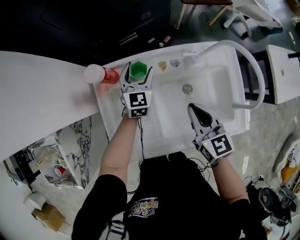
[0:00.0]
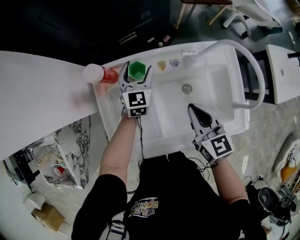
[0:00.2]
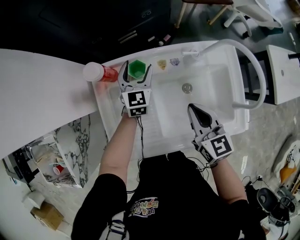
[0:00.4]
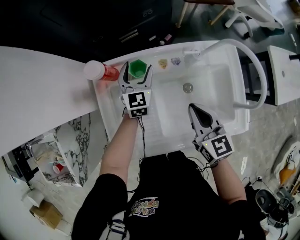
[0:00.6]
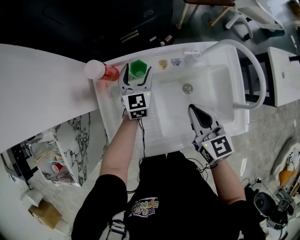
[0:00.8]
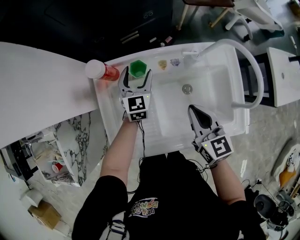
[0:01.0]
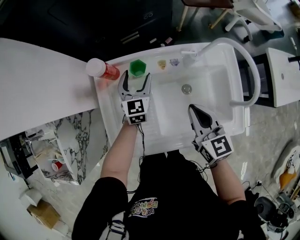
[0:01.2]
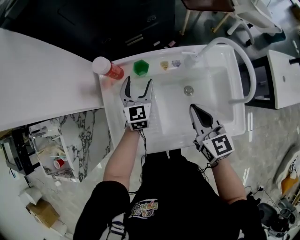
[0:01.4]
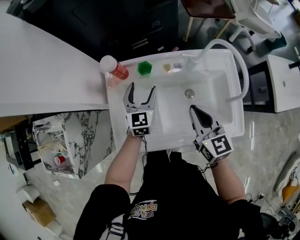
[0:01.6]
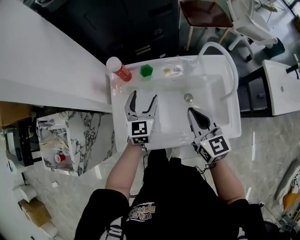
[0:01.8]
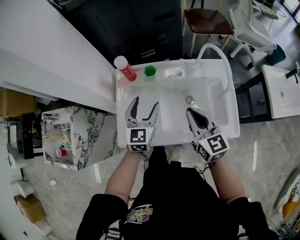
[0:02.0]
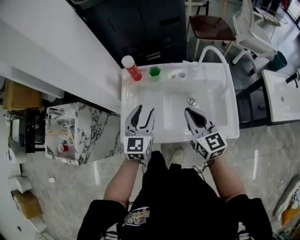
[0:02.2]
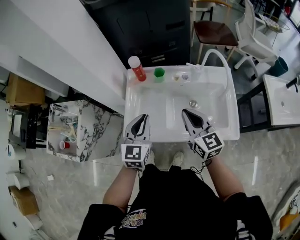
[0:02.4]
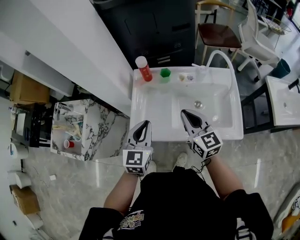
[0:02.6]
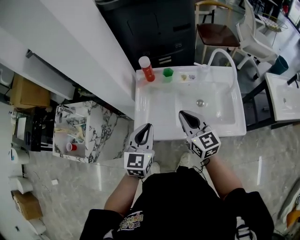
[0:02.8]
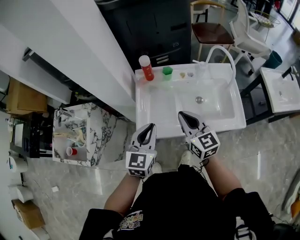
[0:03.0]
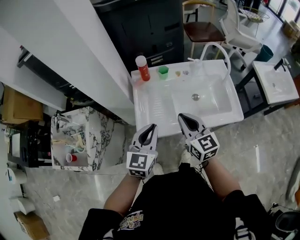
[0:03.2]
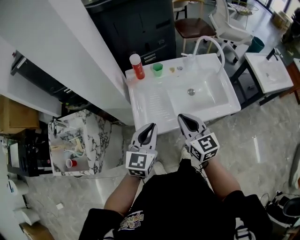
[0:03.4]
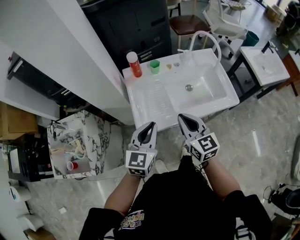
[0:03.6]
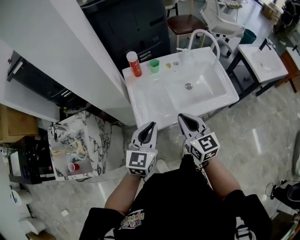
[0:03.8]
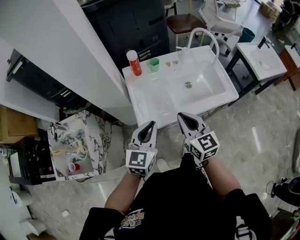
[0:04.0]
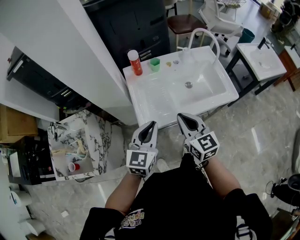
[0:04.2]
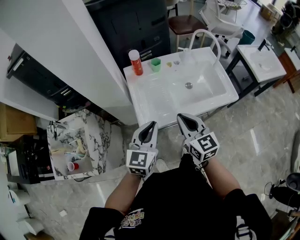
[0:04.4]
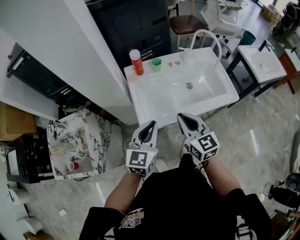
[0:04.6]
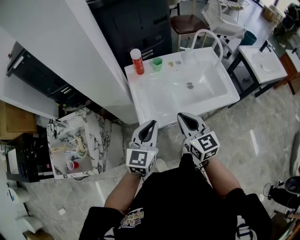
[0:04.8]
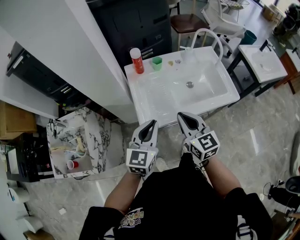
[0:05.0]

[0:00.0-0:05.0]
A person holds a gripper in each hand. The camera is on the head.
0.0 to 1.6 s: The left gripper goes approximately 10 cm backward.
1.6 to 3.4 s: The left gripper shifts some 35 cm backward, upward and to the left, and closes. The right gripper moves backward and to the left, roughly 20 cm.
3.4 to 5.0 s: The right gripper shifts by some 5 cm.

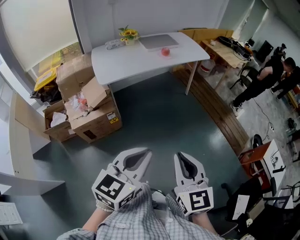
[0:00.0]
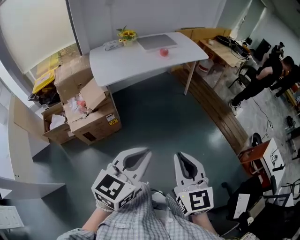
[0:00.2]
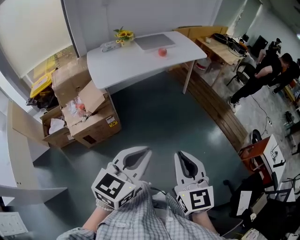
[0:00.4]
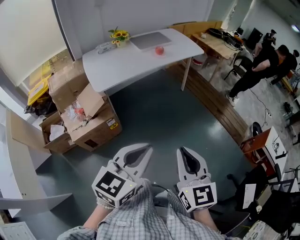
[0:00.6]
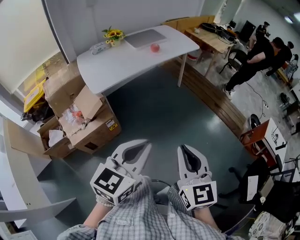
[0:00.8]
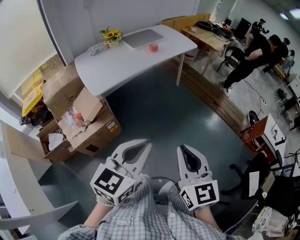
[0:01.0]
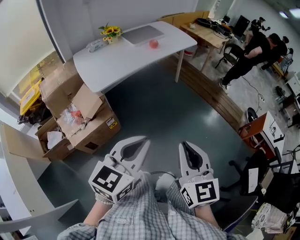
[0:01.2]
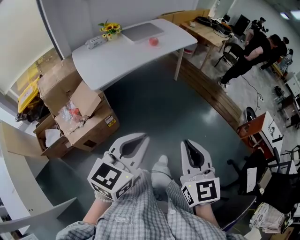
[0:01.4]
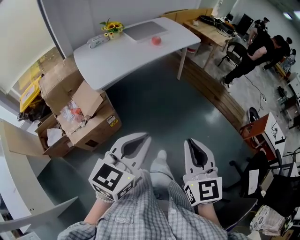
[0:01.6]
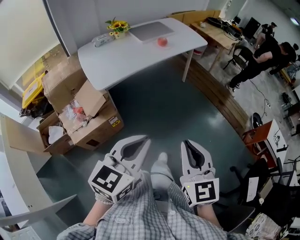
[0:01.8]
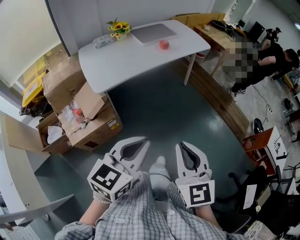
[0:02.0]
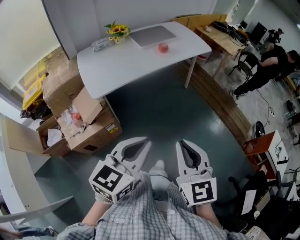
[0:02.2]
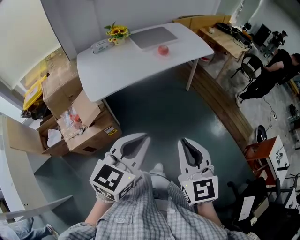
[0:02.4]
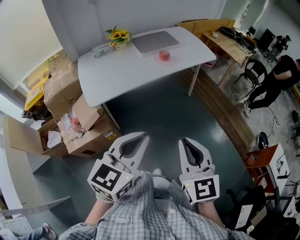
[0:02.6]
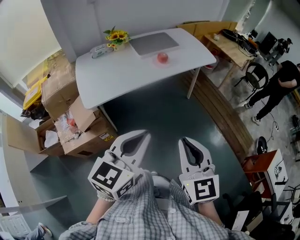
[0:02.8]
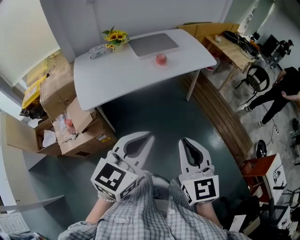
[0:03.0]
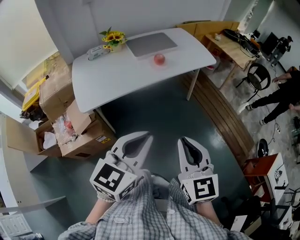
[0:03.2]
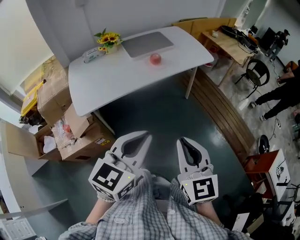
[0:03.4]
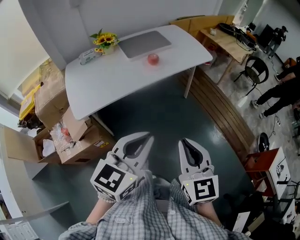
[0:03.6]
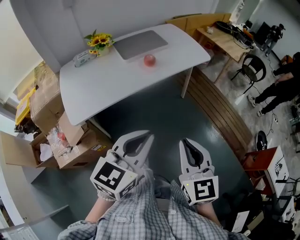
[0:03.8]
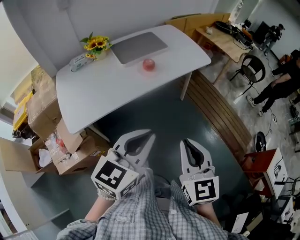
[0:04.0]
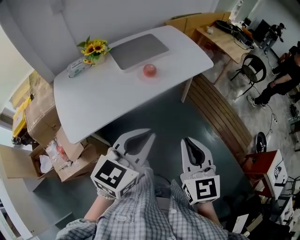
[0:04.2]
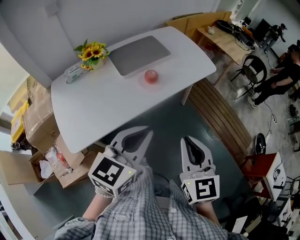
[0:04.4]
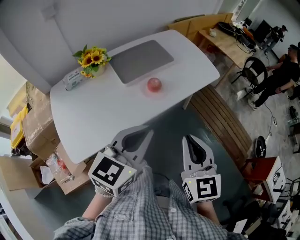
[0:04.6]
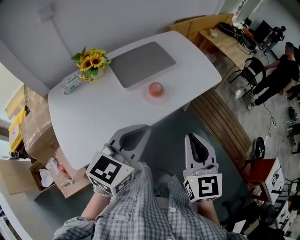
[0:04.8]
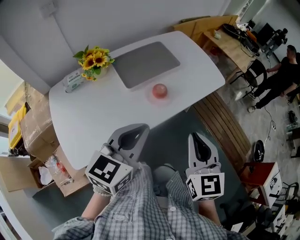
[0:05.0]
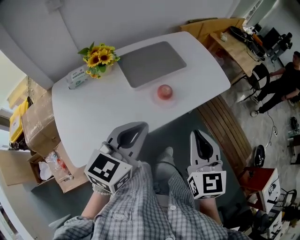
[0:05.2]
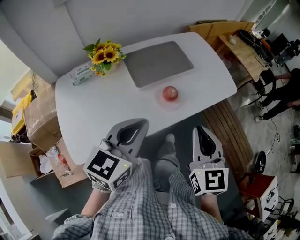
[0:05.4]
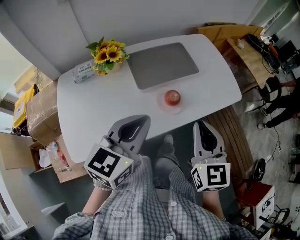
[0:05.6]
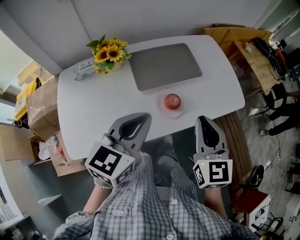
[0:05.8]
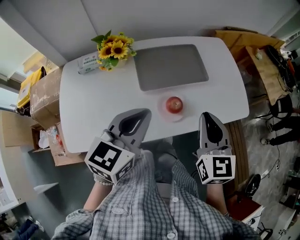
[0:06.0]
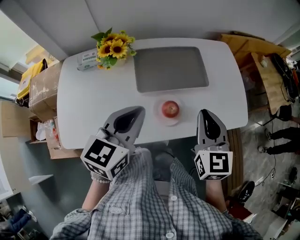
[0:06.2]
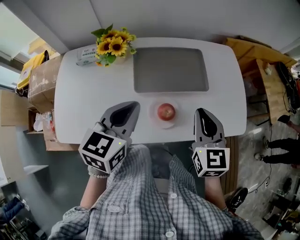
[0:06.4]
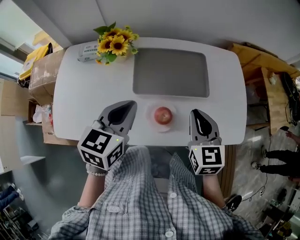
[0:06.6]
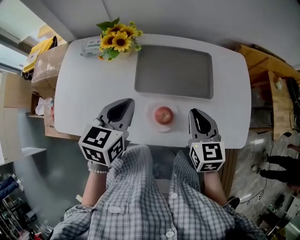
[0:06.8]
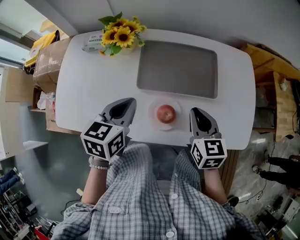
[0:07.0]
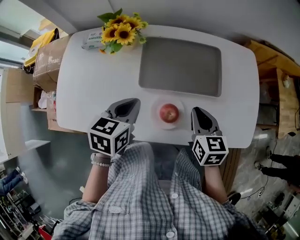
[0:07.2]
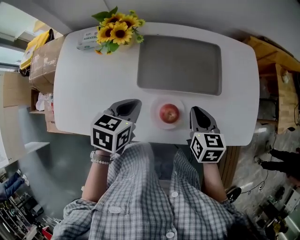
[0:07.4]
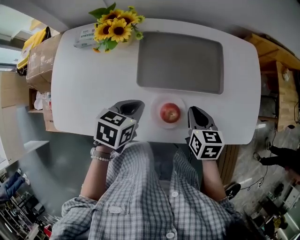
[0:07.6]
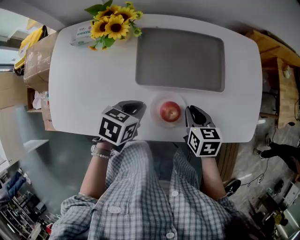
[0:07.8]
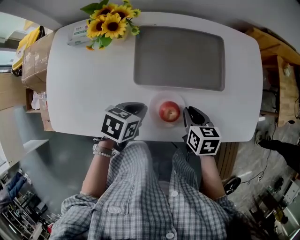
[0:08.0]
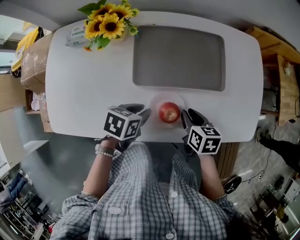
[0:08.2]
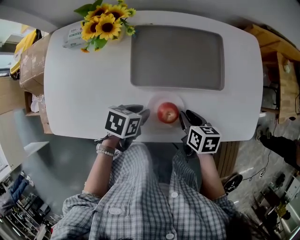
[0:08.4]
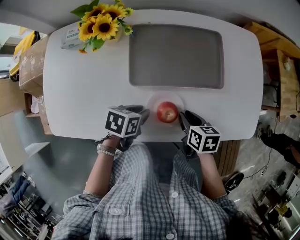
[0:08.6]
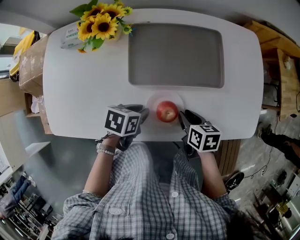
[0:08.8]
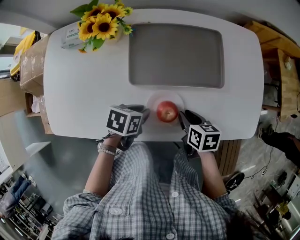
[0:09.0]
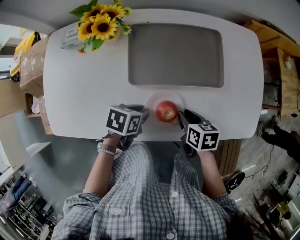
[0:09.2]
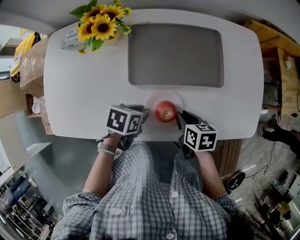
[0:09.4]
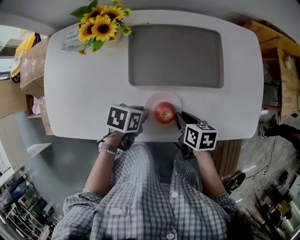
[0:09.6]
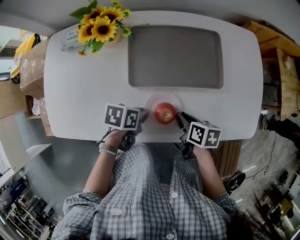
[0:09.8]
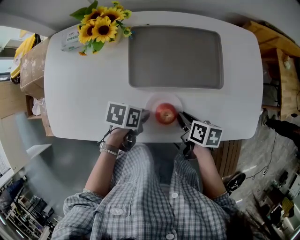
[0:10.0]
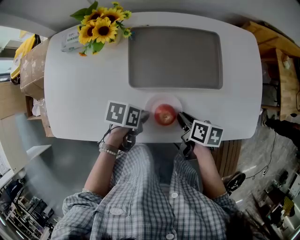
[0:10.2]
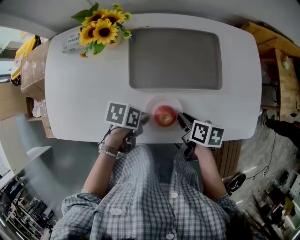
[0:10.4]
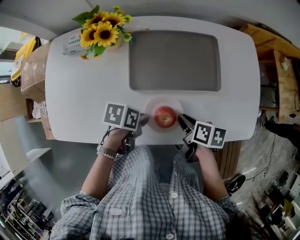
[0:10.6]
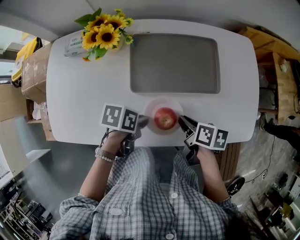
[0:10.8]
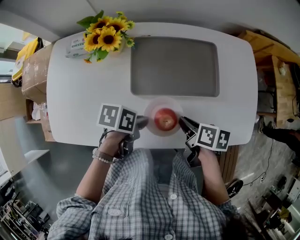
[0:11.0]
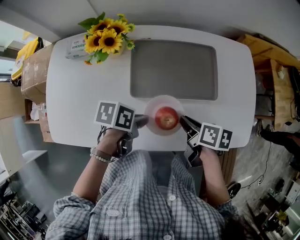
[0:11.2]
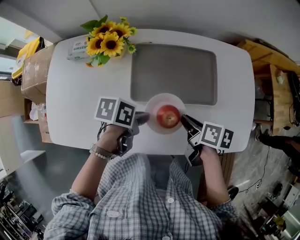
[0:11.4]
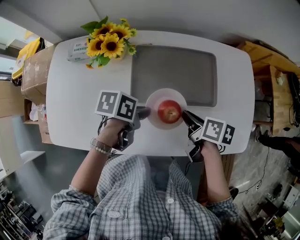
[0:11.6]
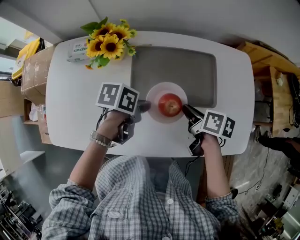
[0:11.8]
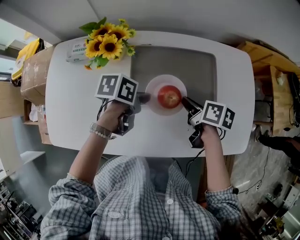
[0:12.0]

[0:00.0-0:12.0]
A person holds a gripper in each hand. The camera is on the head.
0.0 to 1.6 s: The right gripper is displaced to the left by roughly 10 cm; the left gripper moves to the left and forward, approximately 15 cm.
1.6 to 3.0 s: The left gripper is displaced forward and to the right by approximately 25 cm, while the right gripper moves forward, roughly 25 cm.
3.0 to 4.4 s: Both grippers move forward, approximately 25 cm.
4.4 to 6.0 s: The right gripper is displaced forward by some 30 cm. Meanwhile the left gripper moves forward and to the left, roughly 25 cm, and turns by some 20 degrees.
6.0 to 7.6 s: Both grippers move downward and forward, approximately 20 cm. The right gripper angles its fingers downward, by approximately 30 degrees, while the left gripper tips its fingers downward by approximately 30 degrees.
7.6 to 9.0 s: The two grippers go some 10 cm downward. The right gripper changes its angle by roughly 20 degrees; the left gripper changes its angle by approximately 20 degrees, and opens up.
9.0 to 10.4 s: The grippers make only small movements.
10.4 to 12.0 s: The left gripper changes place by about 15 cm. Meanwhile the right gripper moves roughly 15 cm.

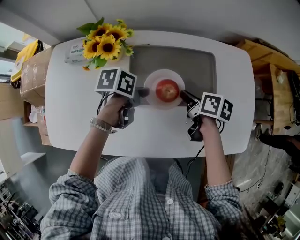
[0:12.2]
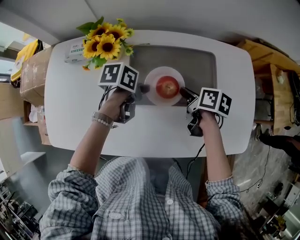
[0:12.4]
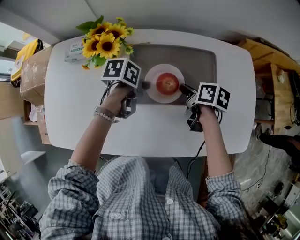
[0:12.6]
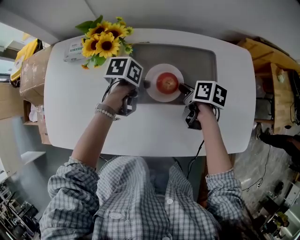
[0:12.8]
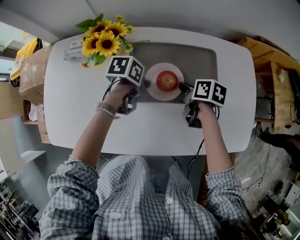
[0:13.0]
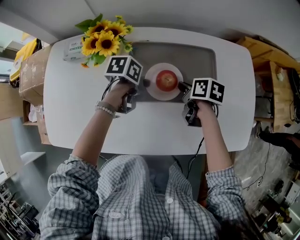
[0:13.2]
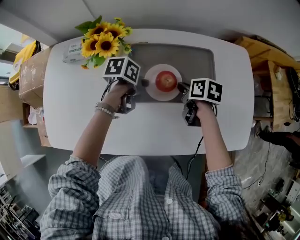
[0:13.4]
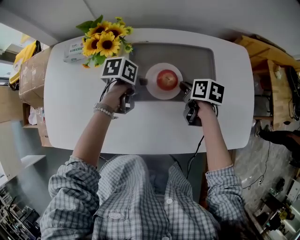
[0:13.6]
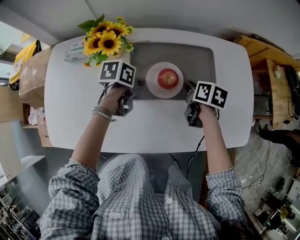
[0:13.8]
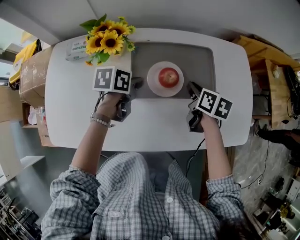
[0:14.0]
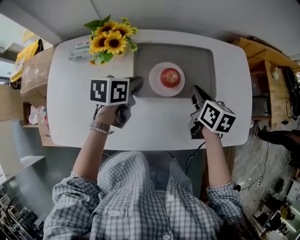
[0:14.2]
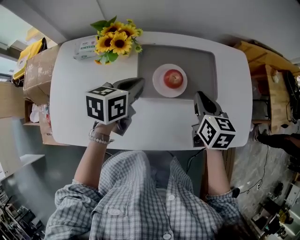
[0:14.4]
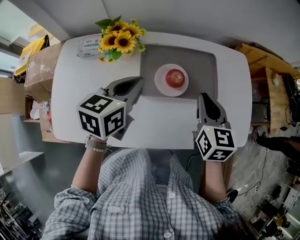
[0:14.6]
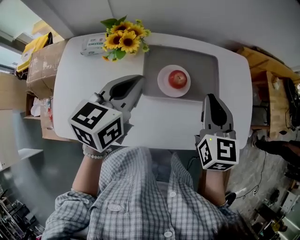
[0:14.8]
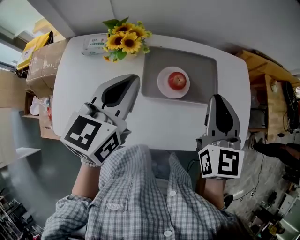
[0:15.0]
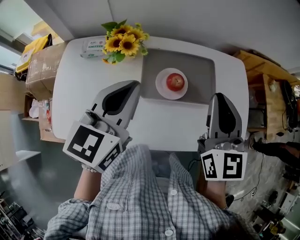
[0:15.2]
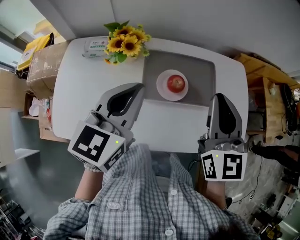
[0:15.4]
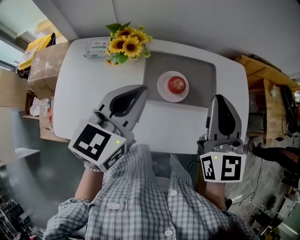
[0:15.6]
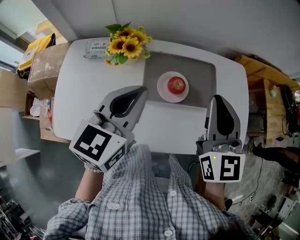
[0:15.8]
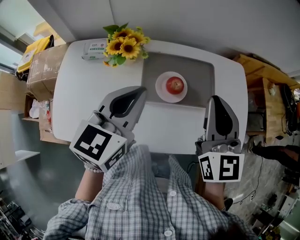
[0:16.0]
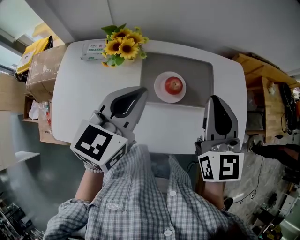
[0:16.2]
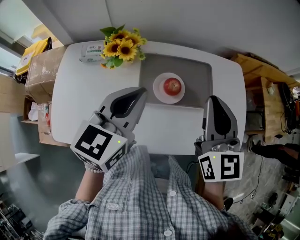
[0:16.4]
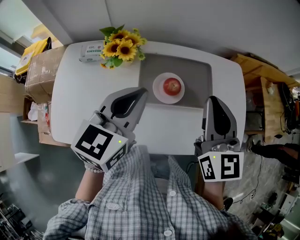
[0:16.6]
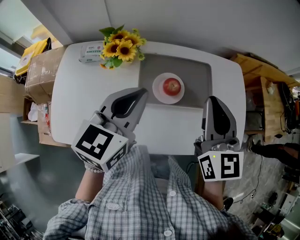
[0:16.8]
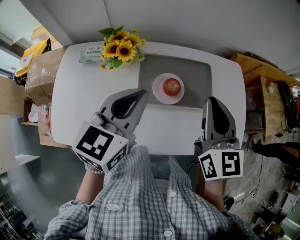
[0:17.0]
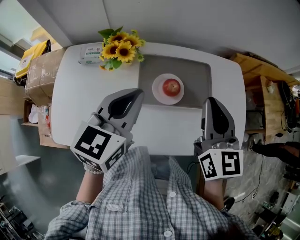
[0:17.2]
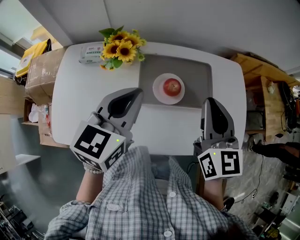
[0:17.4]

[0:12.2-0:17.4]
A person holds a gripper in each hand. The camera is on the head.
12.2 to 14.0 s: The grippers make only small movements.
14.0 to 15.6 s: The two grippers go approximately 25 cm upward. The left gripper tips its fingers upward by some 30 degrees, while the right gripper angles its fingers upward, by approximately 40 degrees.
15.6 to 17.4 s: The grippers stay close to where they were, moving slightly.

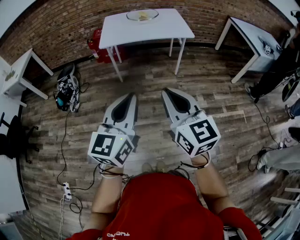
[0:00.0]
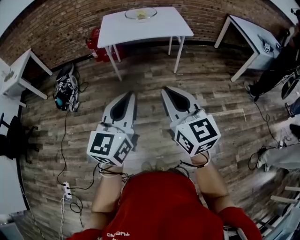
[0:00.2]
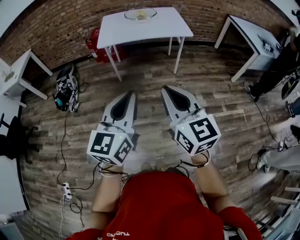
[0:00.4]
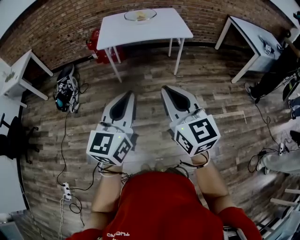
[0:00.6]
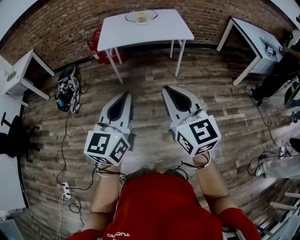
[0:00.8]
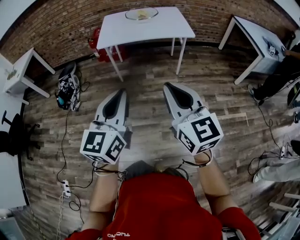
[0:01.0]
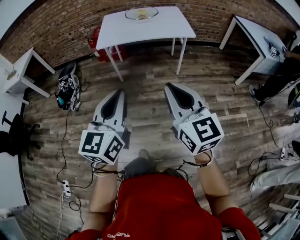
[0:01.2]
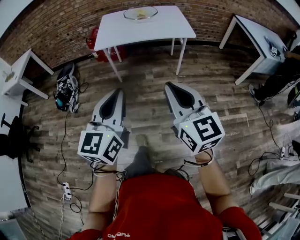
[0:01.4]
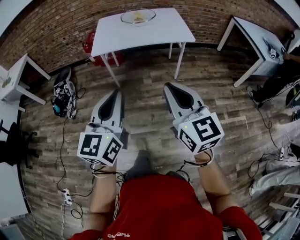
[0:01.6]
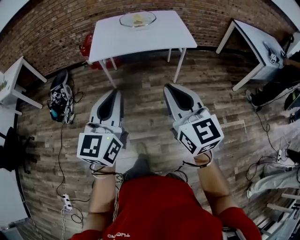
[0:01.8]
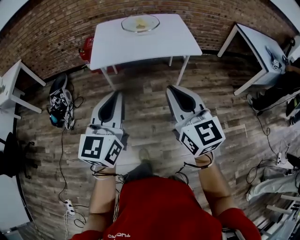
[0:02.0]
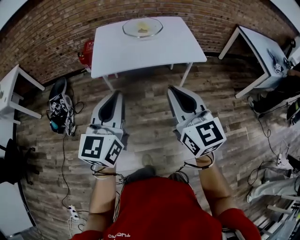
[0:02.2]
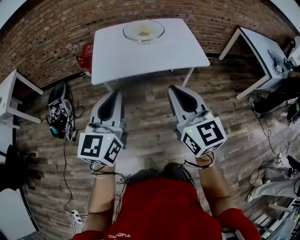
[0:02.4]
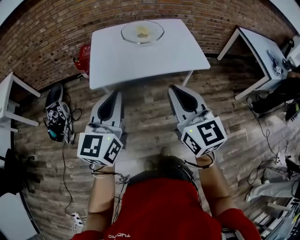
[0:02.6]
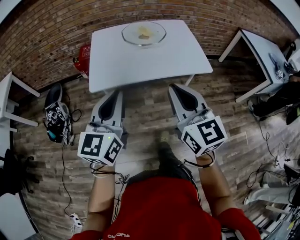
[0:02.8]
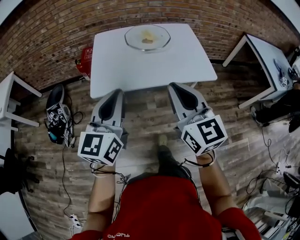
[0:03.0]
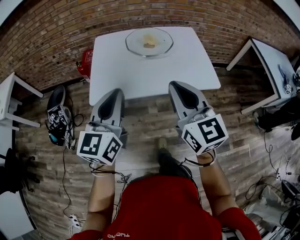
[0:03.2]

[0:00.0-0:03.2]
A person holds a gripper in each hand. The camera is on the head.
0.0 to 1.6 s: The right gripper goes approximately 15 cm forward and to the right. Meanwhile the left gripper goes about 15 cm forward.
1.6 to 3.2 s: Both grippers are carried forward, roughly 50 cm.
